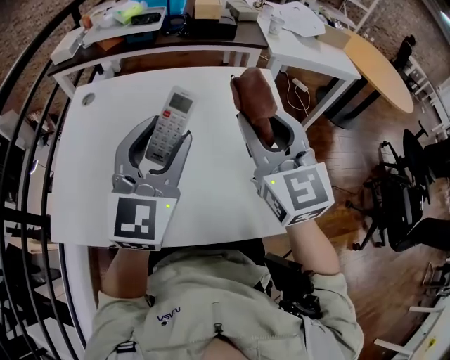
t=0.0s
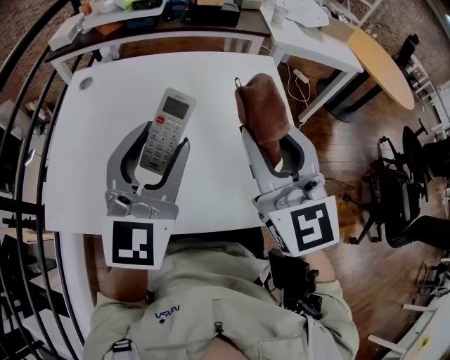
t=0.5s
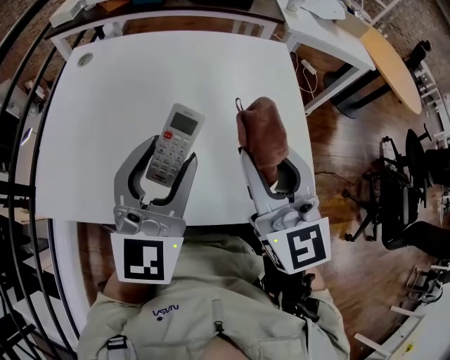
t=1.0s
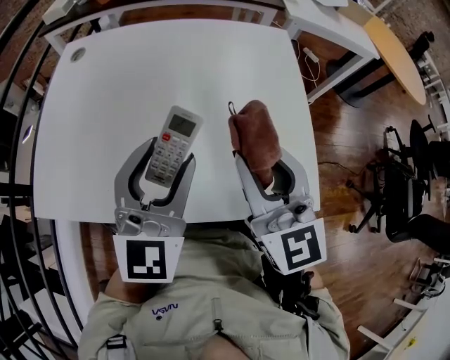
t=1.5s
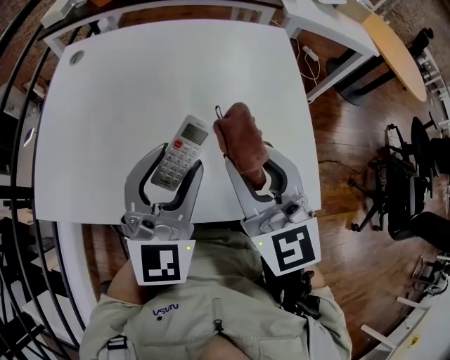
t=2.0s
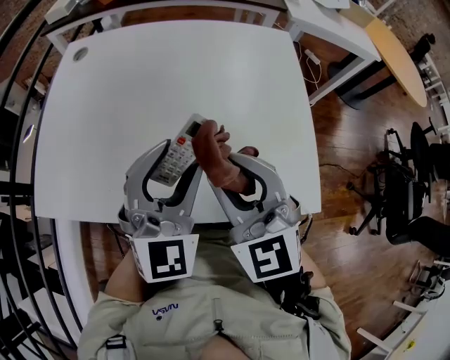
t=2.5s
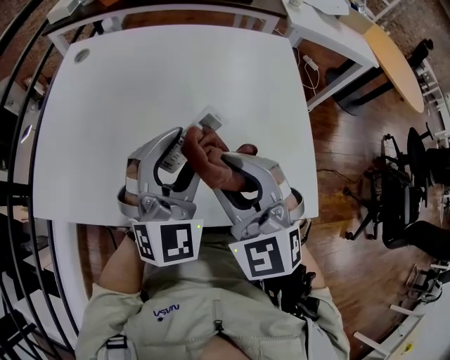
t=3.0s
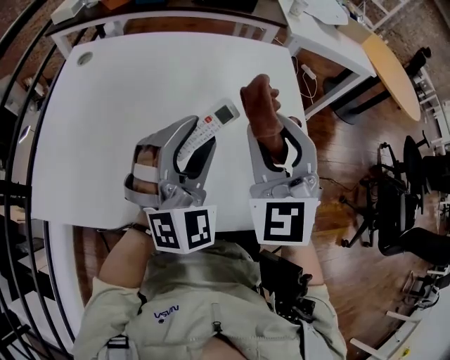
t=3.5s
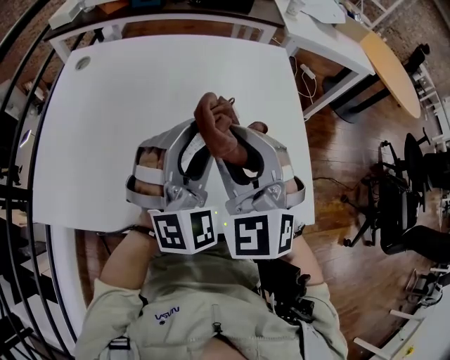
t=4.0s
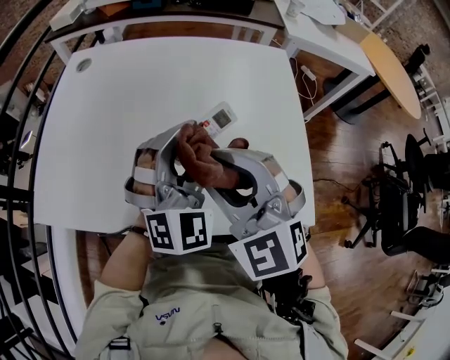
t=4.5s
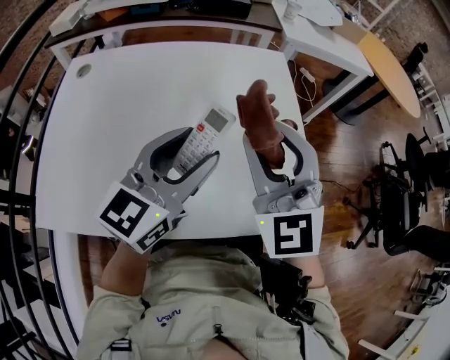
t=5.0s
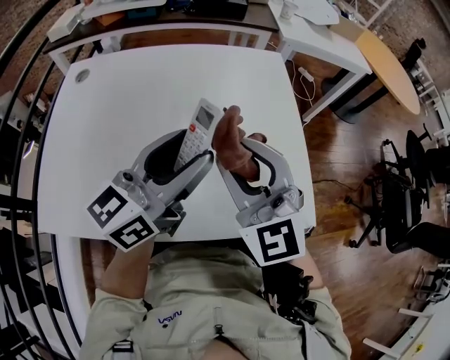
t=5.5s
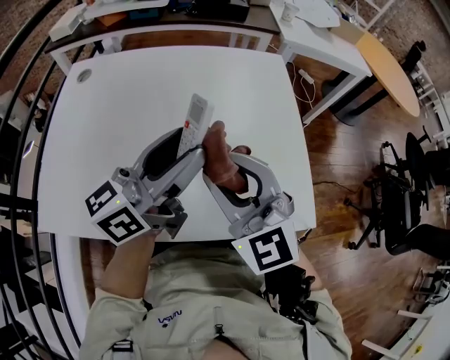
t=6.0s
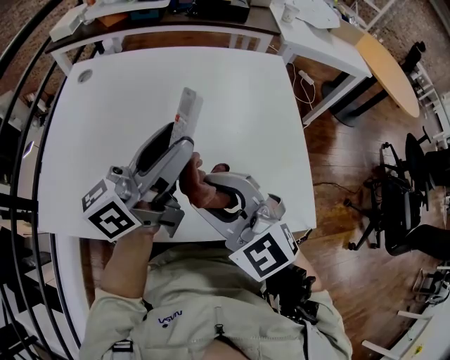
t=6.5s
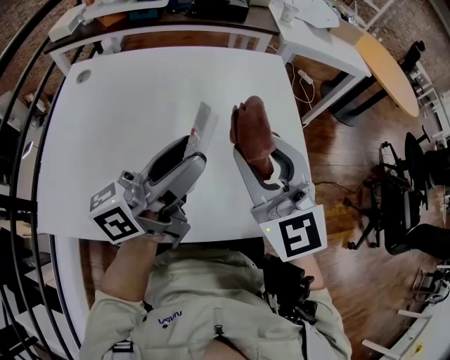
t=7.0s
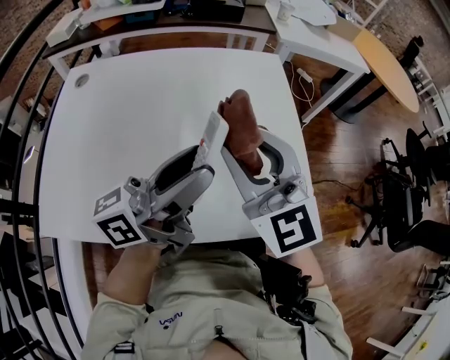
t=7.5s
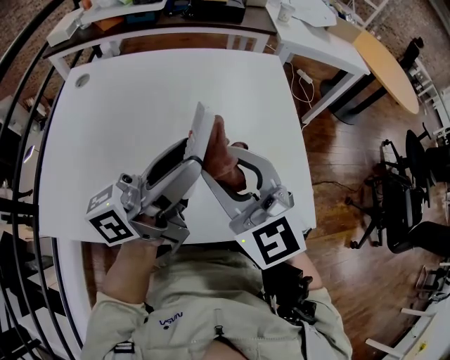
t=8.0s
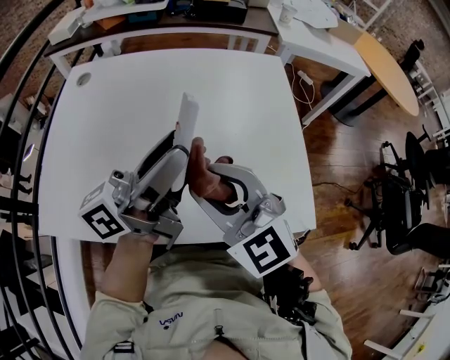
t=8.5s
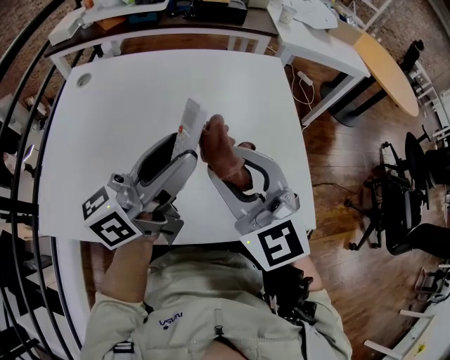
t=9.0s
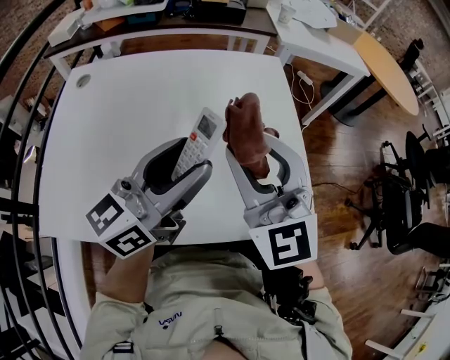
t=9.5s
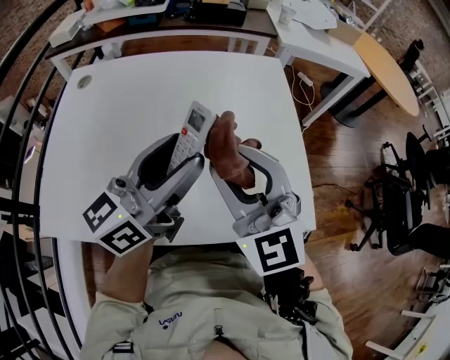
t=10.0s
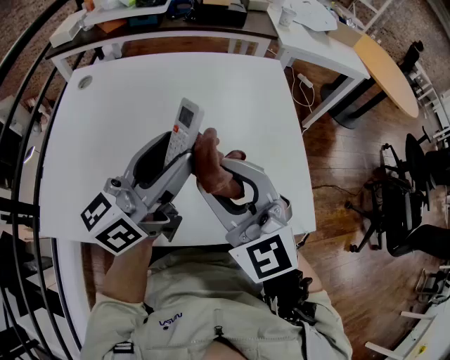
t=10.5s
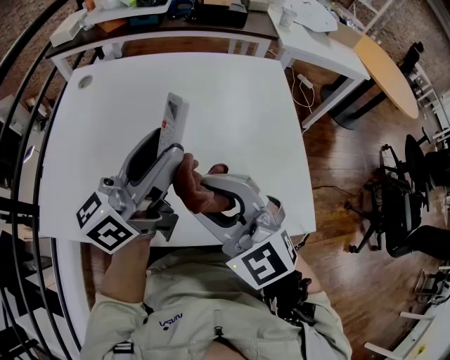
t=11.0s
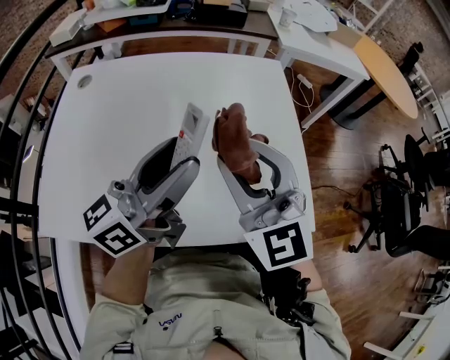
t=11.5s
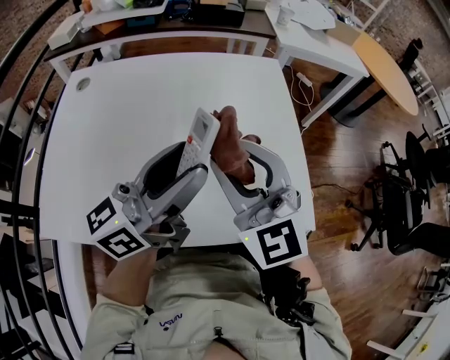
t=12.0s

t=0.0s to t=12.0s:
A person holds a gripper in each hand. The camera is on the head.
t=0.0s to t=2.0s: The grippers both shift downward and backward by approximately 15 cm.
t=2.0s to t=4.0s: The right gripper ends up roughly 5 cm from where it was, and rotates some 40 degrees; the left gripper moves forward, about 5 cm, and rotates roughly 30 degrees.
t=4.0s to t=6.0s: The right gripper swivels about 20 degrees. The left gripper is displaced upward by roughly 5 cm, and twists about 90 degrees counterclockwise, seen from behind.
t=6.0s to t=8.0s: The right gripper goes forward and returns, some 5 cm each way.
t=8.0s to t=10.0s: The left gripper swivels about 30 degrees.

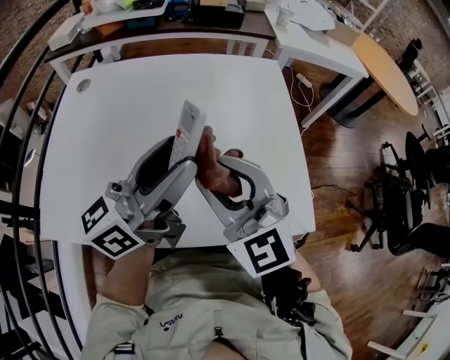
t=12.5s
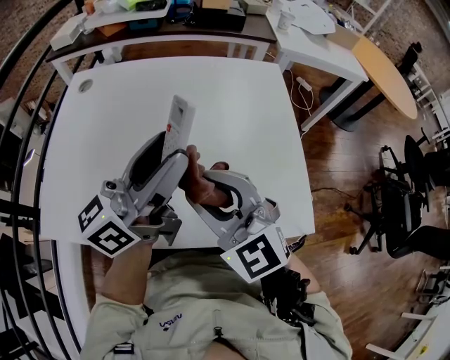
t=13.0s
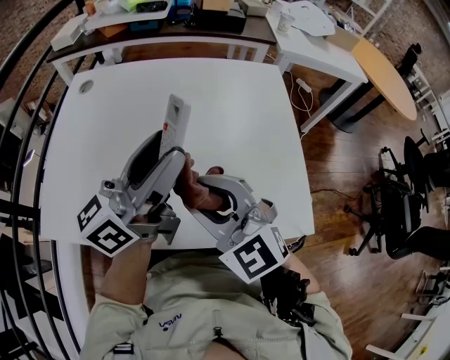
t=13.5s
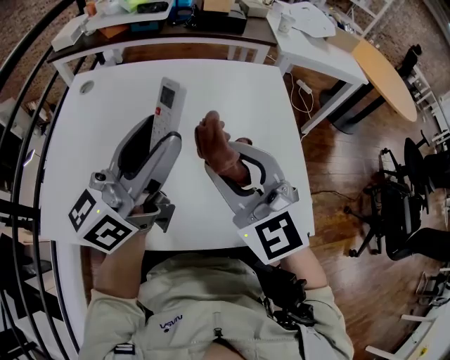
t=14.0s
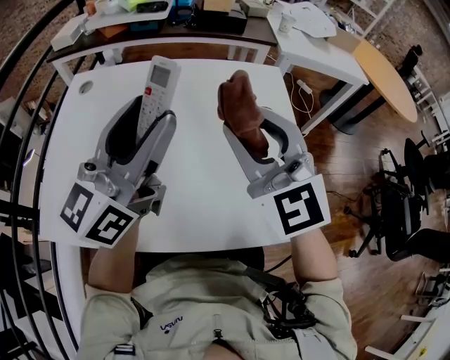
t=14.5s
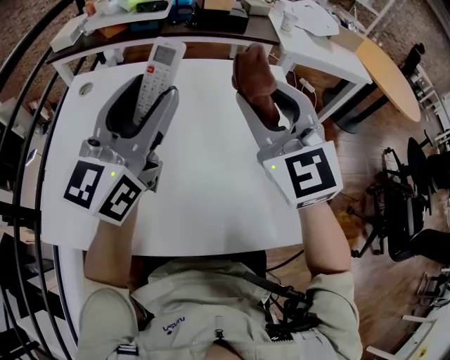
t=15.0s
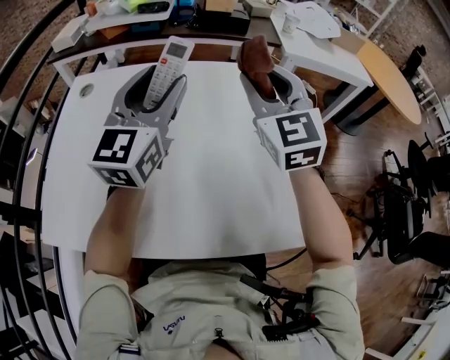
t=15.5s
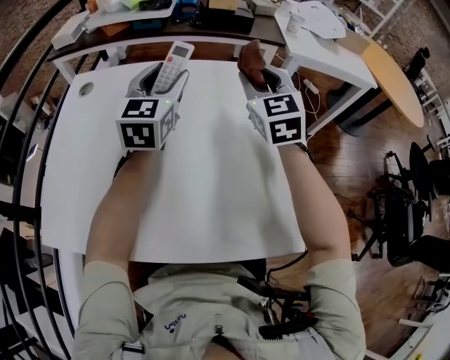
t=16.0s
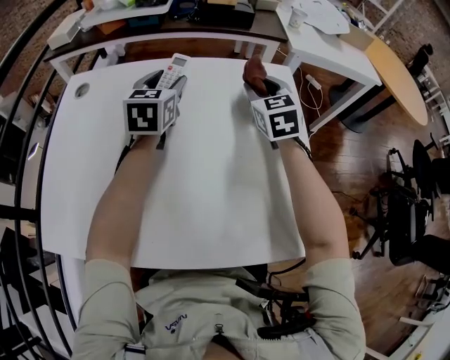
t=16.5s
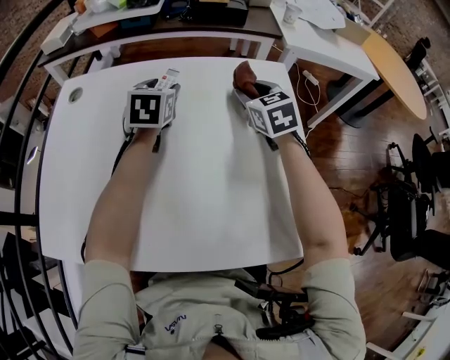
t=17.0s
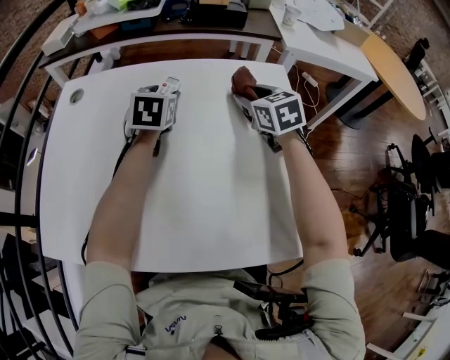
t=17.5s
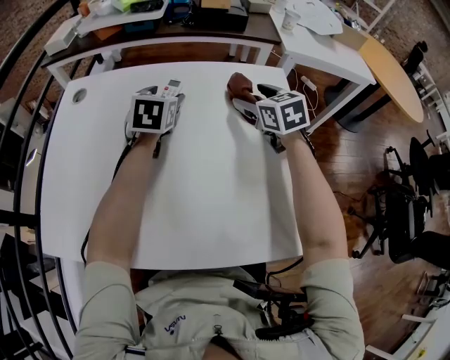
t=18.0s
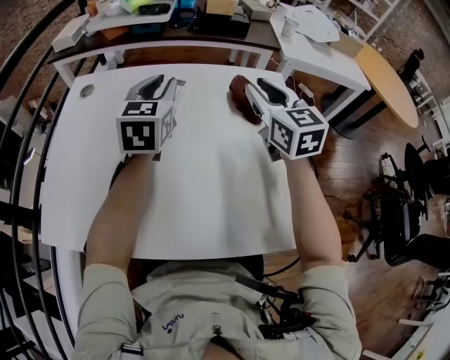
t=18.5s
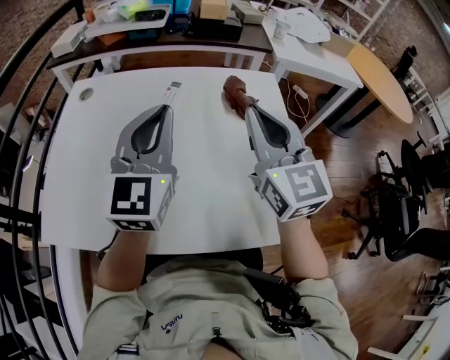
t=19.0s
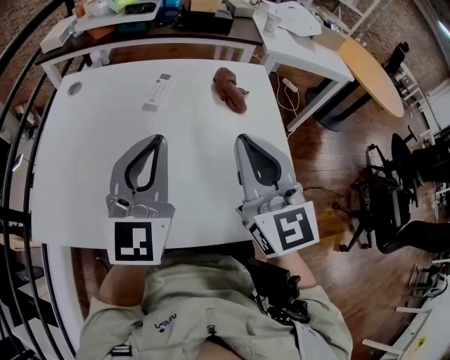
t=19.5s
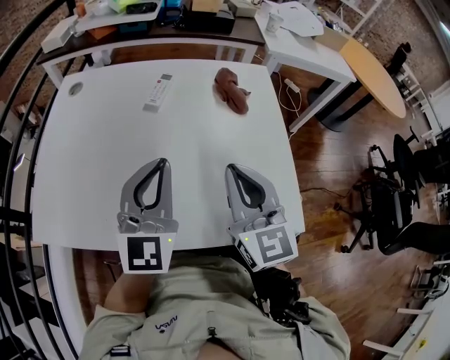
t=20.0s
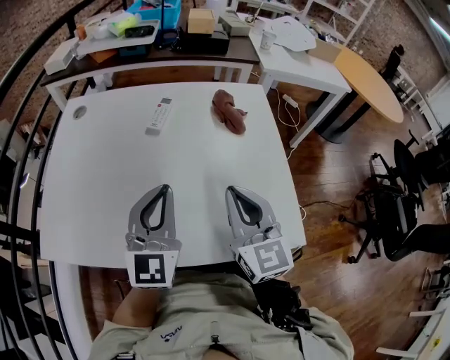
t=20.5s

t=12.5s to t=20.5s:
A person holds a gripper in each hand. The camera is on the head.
t=12.5s to t=14.5s: The right gripper moves upward and forward, about 10 cm, while the left gripper heads upward, covering about 5 cm, and rotates approximately 30 degrees.
t=14.5s to t=16.5s: Both grippers move forward and downward, about 30 cm. The right gripper changes its angle by approximately 30 degrees. Meanwhile the left gripper tips its fingers downward by roughly 40 degrees.
t=16.5s to t=18.5s: The left gripper shifts roughly 10 cm backward and upward, and closes its fingers. Meanwhile the right gripper goes about 10 cm upward and backward, and opens and closes again.
t=18.5s to t=20.5s: The two grippers go roughly 20 cm backward.

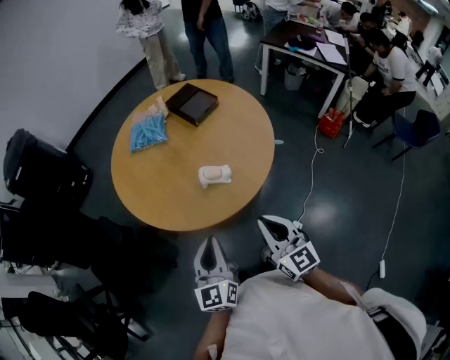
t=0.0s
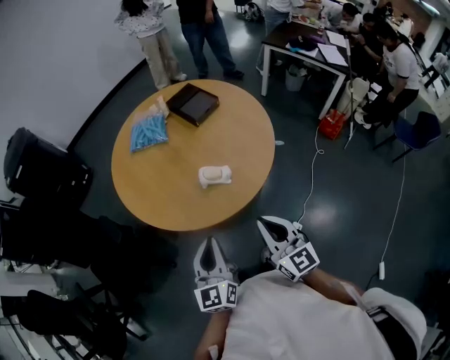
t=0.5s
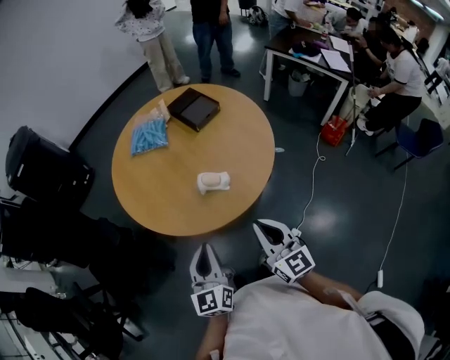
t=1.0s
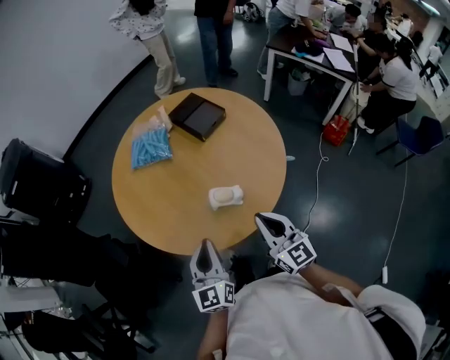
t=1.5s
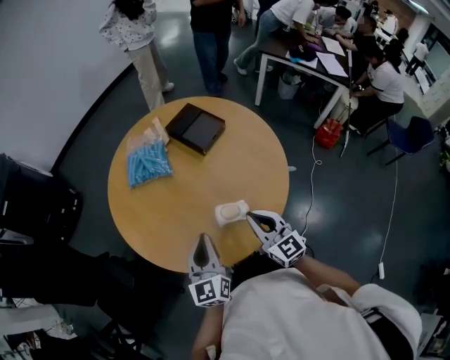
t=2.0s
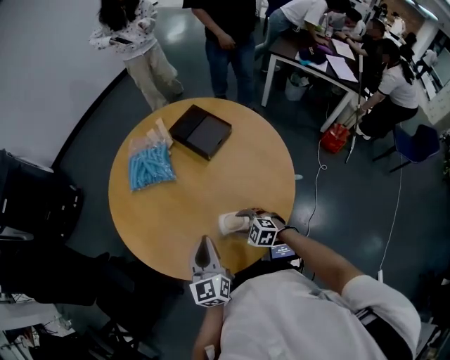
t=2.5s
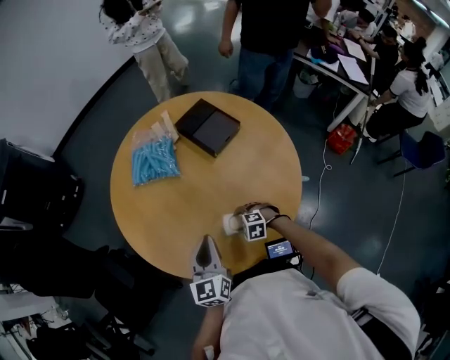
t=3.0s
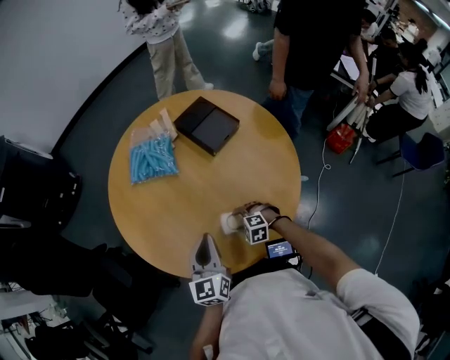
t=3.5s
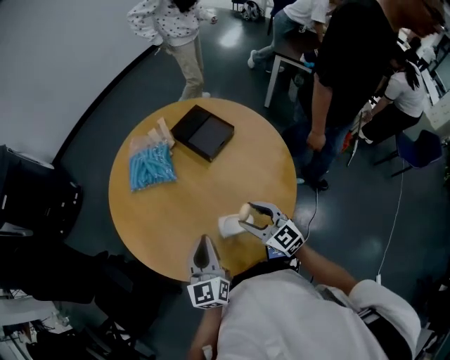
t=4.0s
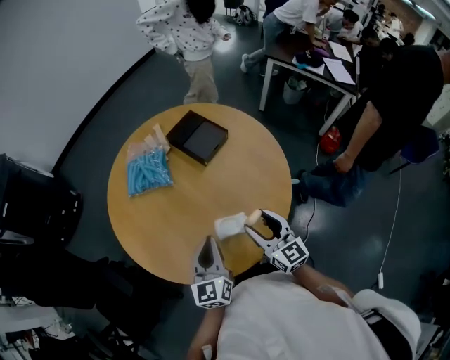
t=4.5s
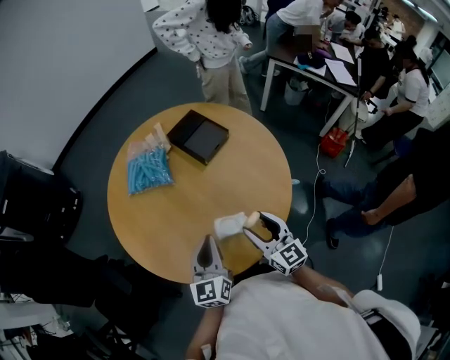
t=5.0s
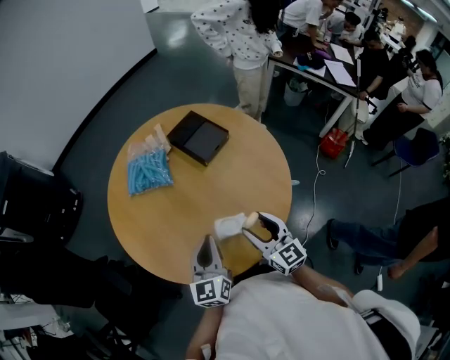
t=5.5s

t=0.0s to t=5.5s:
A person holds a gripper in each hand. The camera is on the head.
t=0.0s to t=2.0s: Both grippers travel together forward, roughly 25 cm.
t=2.0s to t=3.5s: The right gripper is displaced downward by some 25 cm, tilts its fingers some 60 degrees downward, and opens its fingers. The left gripper changes place by roughly 5 cm.
t=3.5s to t=5.5s: The right gripper moves upward, roughly 25 cm, and angles its fingers upward, by about 60 degrees.

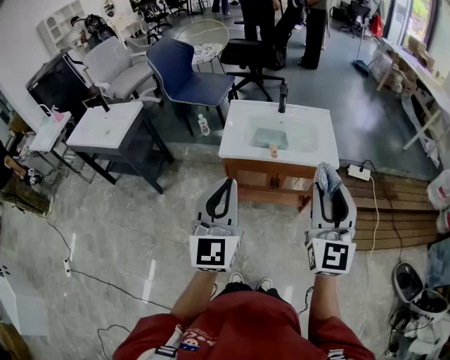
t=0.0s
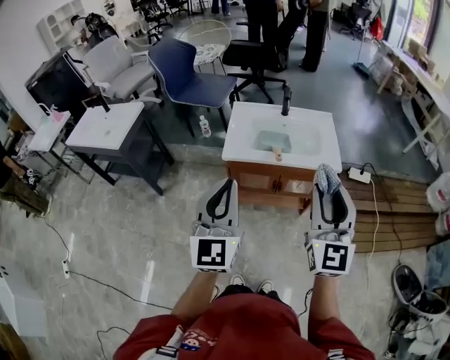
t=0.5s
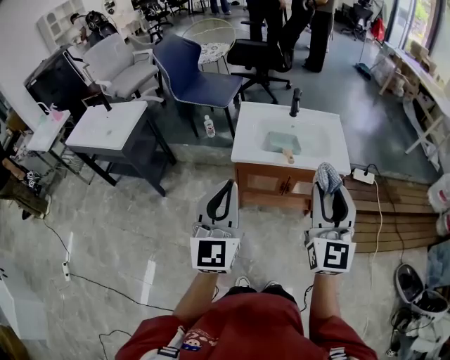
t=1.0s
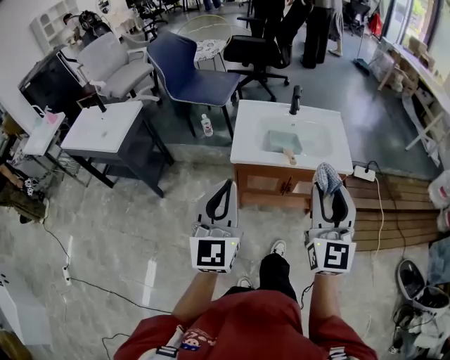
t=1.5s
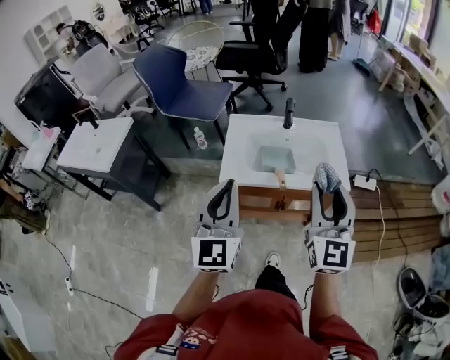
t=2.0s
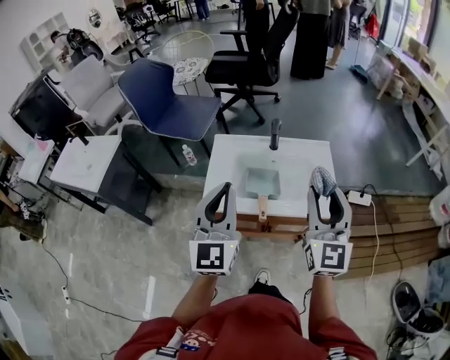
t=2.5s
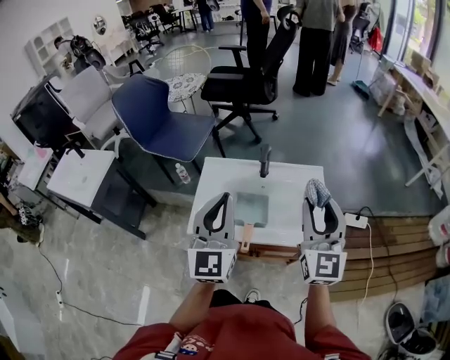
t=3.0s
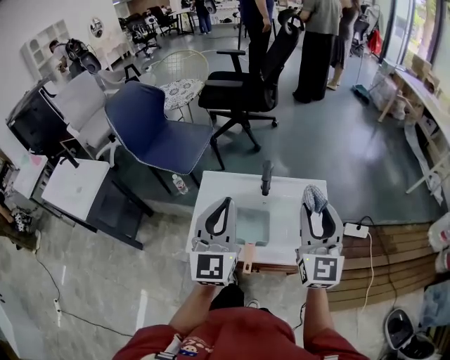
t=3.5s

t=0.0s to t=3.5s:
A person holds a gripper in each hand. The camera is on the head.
t=0.0s to t=2.0s: The grippers both shift forward by about 15 cm.
t=2.0s to t=3.5s: The right gripper shifts about 25 cm forward. Meanwhile the left gripper heads forward and to the right, covering approximately 30 cm.
